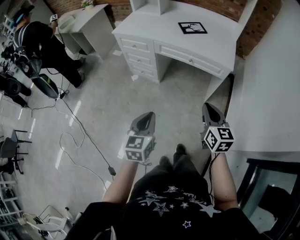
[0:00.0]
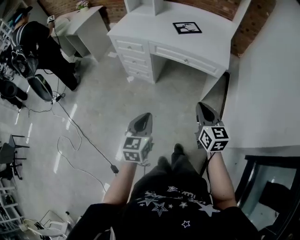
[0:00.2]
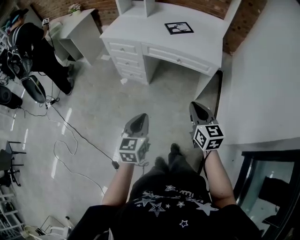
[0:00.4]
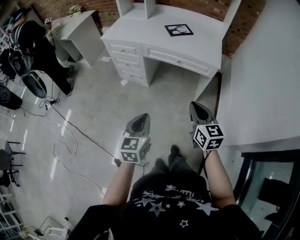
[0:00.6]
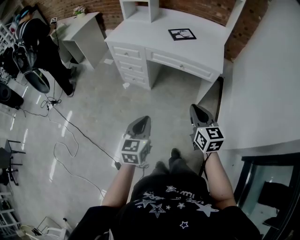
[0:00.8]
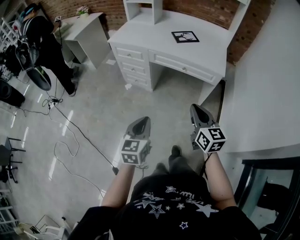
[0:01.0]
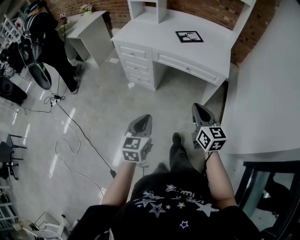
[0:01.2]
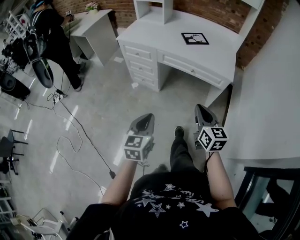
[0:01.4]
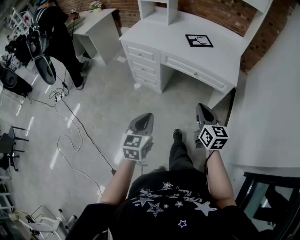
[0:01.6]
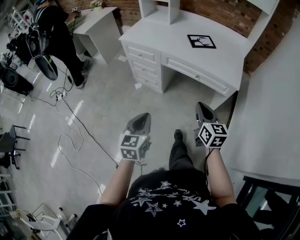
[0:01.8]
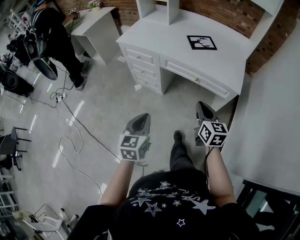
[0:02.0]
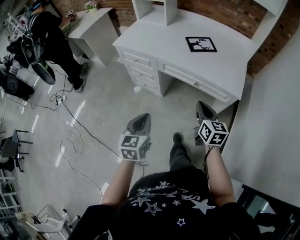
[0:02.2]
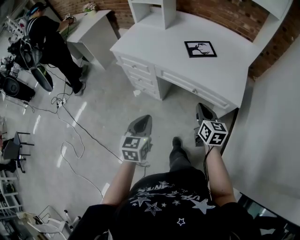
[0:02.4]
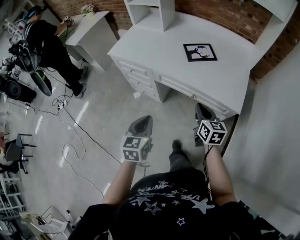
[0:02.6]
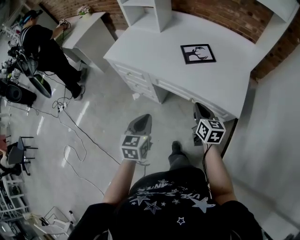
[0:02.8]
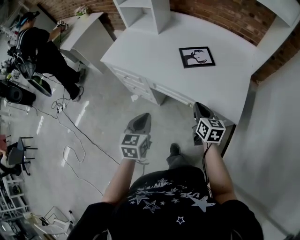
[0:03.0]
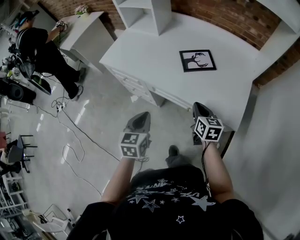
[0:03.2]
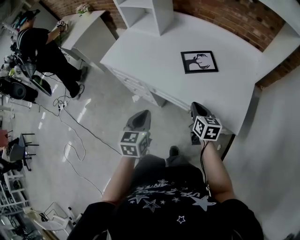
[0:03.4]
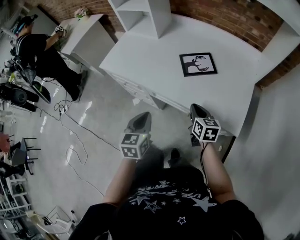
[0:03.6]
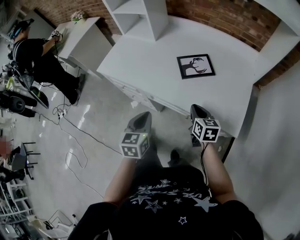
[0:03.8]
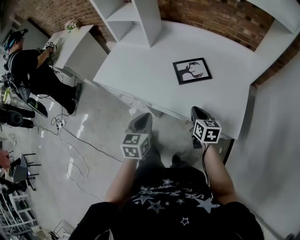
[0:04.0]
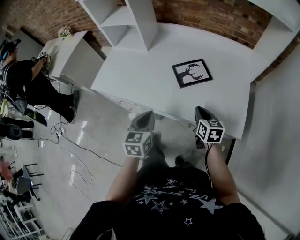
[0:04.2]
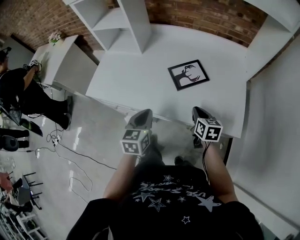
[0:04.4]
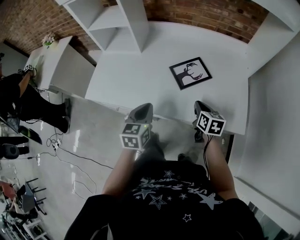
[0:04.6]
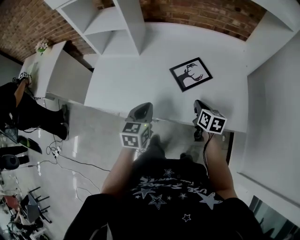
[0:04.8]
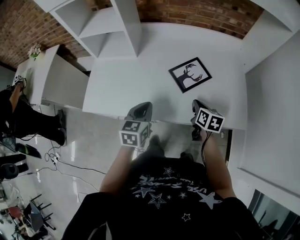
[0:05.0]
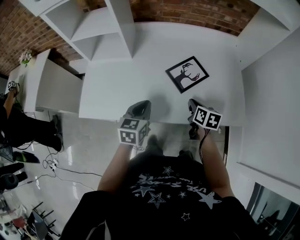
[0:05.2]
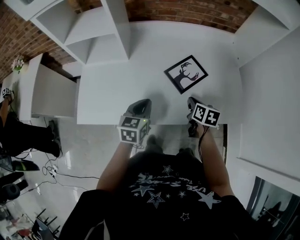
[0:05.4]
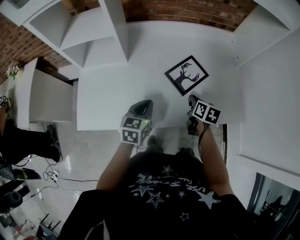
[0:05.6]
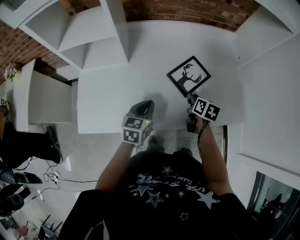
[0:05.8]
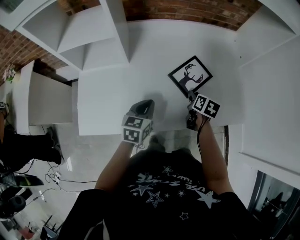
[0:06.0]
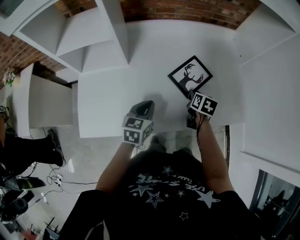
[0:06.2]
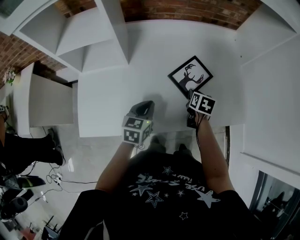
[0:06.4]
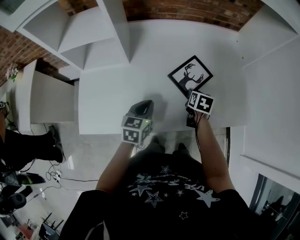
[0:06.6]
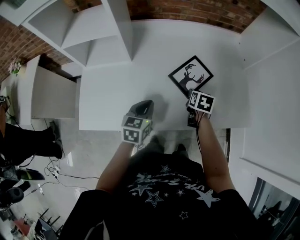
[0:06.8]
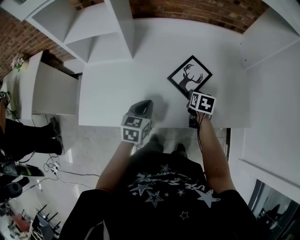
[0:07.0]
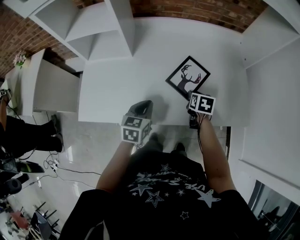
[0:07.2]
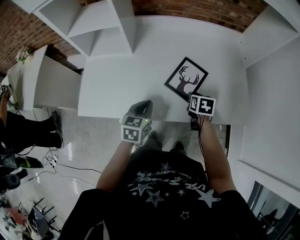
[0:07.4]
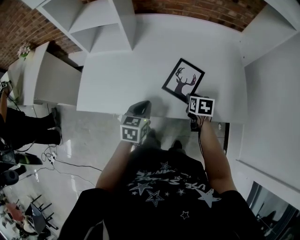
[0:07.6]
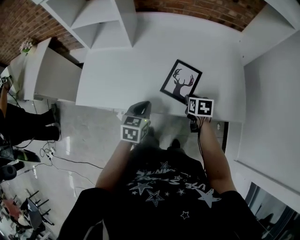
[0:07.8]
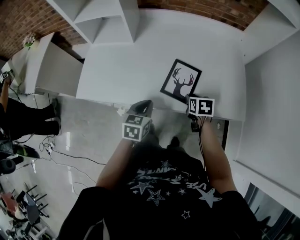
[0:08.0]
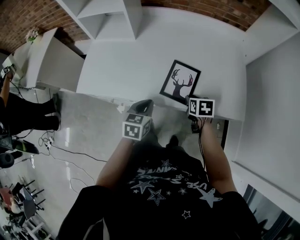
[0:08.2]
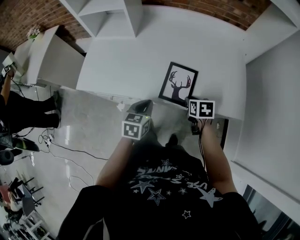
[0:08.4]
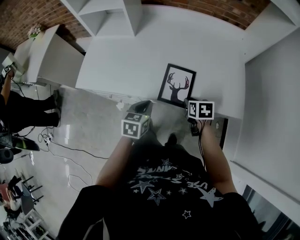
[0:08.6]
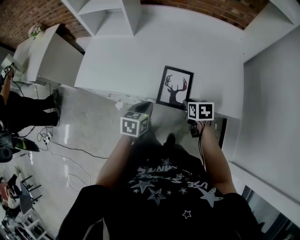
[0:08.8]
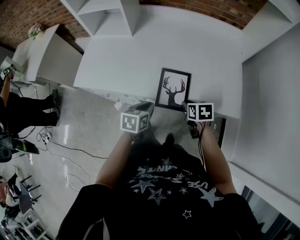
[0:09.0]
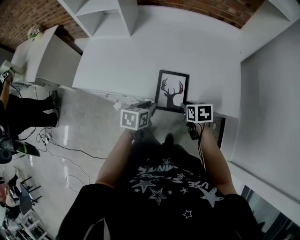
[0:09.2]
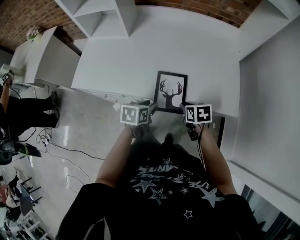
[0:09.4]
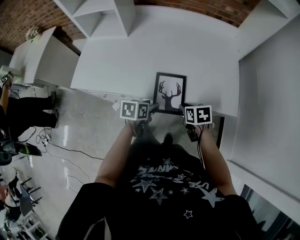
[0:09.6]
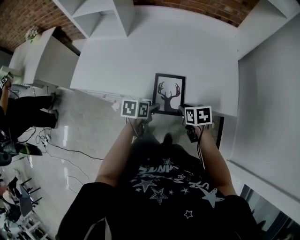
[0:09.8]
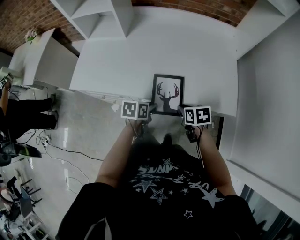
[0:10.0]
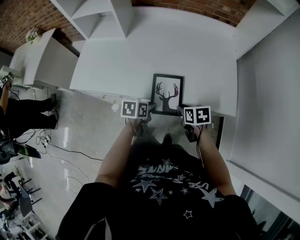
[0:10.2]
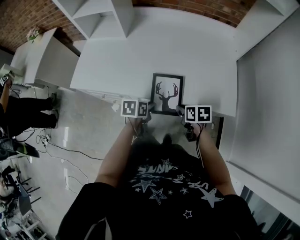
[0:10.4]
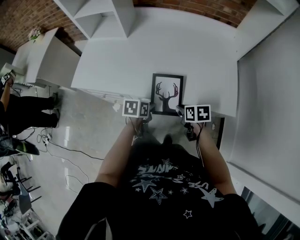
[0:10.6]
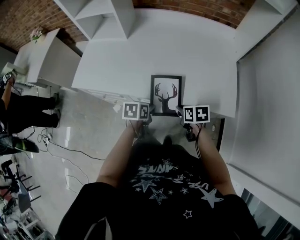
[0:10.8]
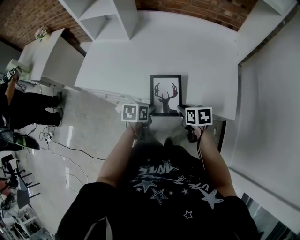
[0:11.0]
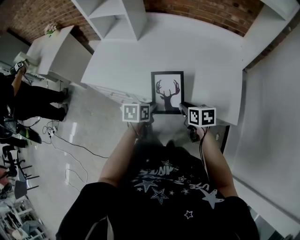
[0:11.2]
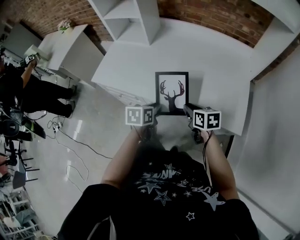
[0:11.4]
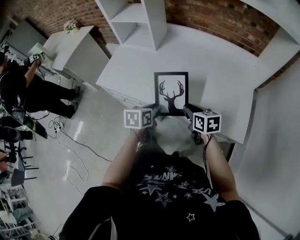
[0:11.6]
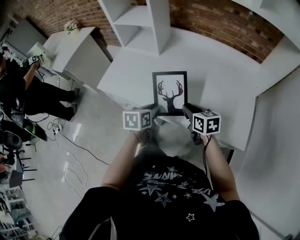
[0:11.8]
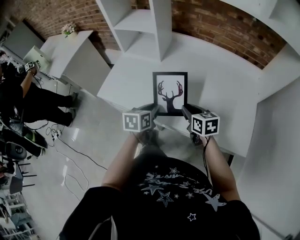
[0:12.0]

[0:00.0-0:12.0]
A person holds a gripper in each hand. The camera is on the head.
0:00.0 to 0:01.6: The left gripper changes place by roughly 5 cm. The right gripper shifts about 10 cm forward and to the left.
0:01.6 to 0:03.0: The grippers both shift forward by roughly 30 cm.
0:03.0 to 0:04.4: The right gripper heads forward, covering approximately 10 cm; the left gripper travels forward by approximately 20 cm.
0:04.4 to 0:06.0: The left gripper moves approximately 15 cm, and changes its angle by about 30 degrees. The right gripper changes place by approximately 15 cm, changes its angle by approximately 40 degrees, and opens.
0:06.0 to 0:07.6: The grippers both shift backward by roughly 5 cm. The right gripper turns by roughly 30 degrees.
0:07.6 to 0:09.0: The left gripper heads backward and to the right, covering approximately 10 cm. Meanwhile the right gripper moves backward, about 10 cm.
0:09.0 to 0:10.4: The left gripper opens, then closes again.
0:10.4 to 0:12.0: The right gripper travels forward, upward and to the left by roughly 20 cm, and changes its angle by about 30 degrees; the left gripper goes approximately 20 cm to the left, upward and forward, and changes its angle by about 30 degrees.

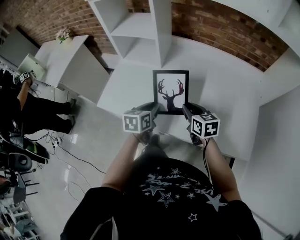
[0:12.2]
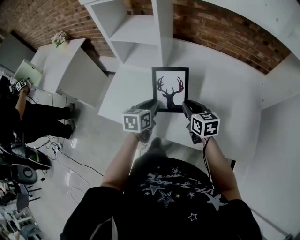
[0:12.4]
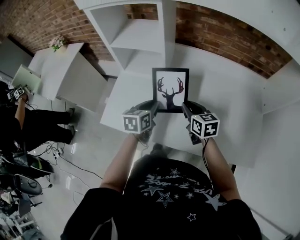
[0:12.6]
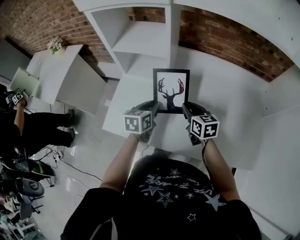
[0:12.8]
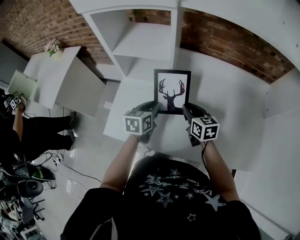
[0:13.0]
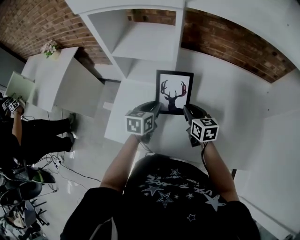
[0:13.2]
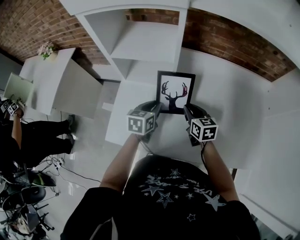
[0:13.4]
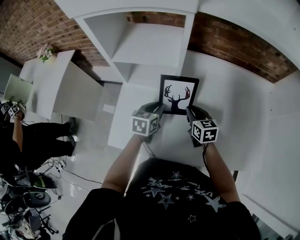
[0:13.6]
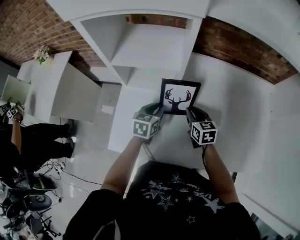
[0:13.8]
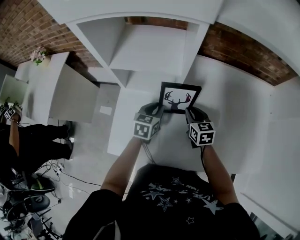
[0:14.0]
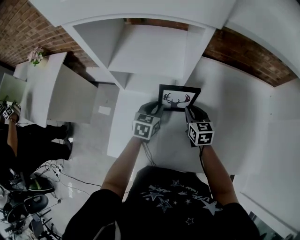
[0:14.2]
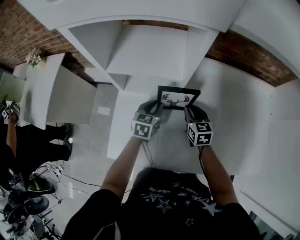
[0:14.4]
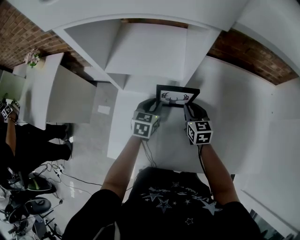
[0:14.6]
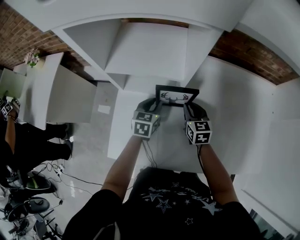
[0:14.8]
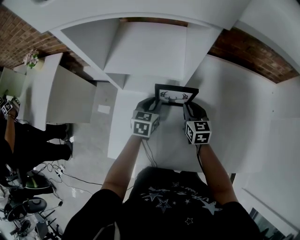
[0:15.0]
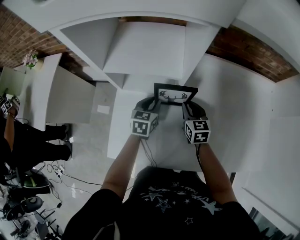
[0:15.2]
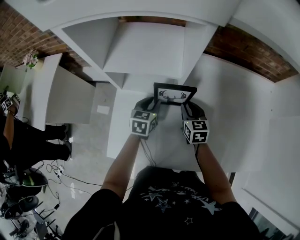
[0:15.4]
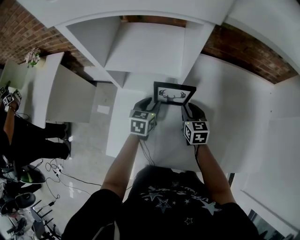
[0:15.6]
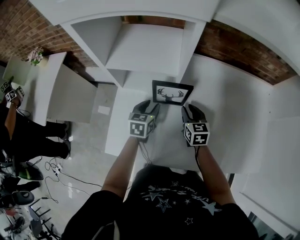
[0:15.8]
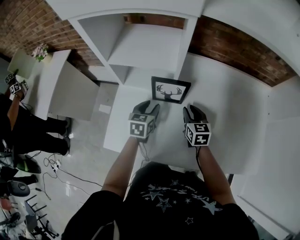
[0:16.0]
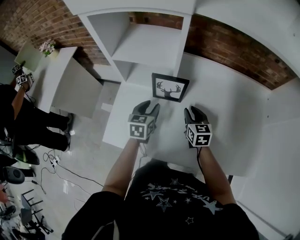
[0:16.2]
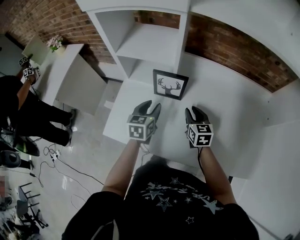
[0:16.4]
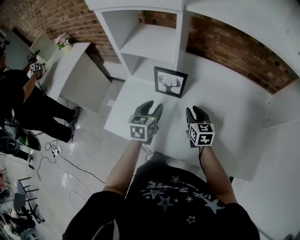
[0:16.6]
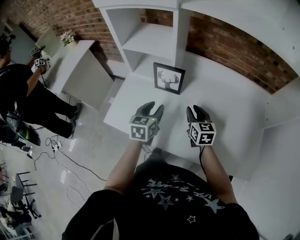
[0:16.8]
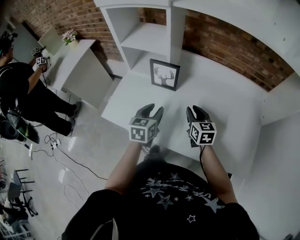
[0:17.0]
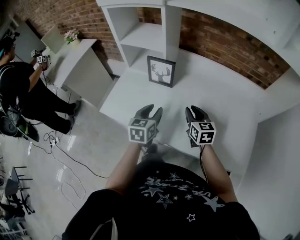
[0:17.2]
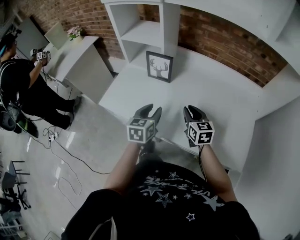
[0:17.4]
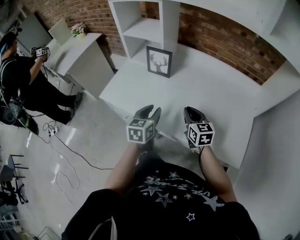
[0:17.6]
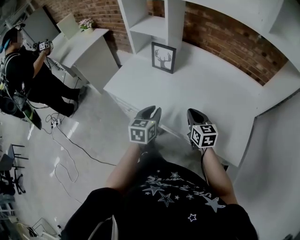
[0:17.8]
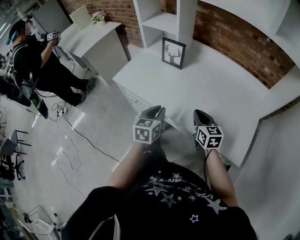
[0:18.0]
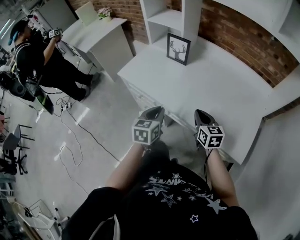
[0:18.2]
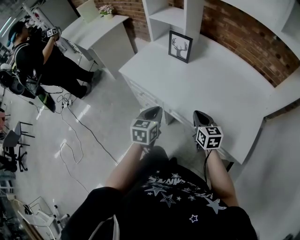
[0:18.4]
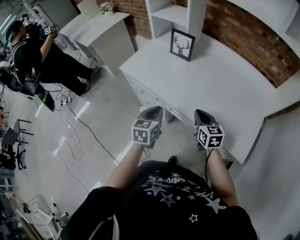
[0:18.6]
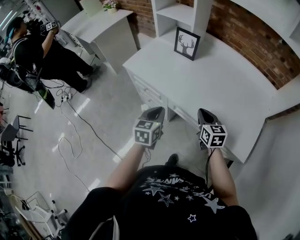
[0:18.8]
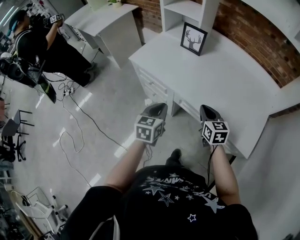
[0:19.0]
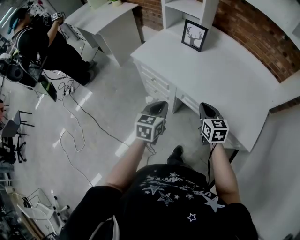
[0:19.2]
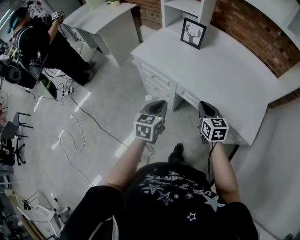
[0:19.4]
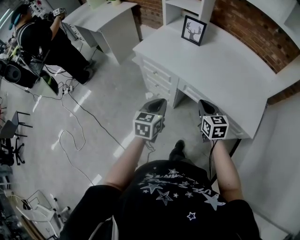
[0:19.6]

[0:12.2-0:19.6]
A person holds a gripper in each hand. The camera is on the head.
0:12.2 to 0:13.6: Both grippers move forward and to the left, some 20 cm.
0:13.6 to 0:15.2: Both grippers travel together forward, approximately 5 cm.
0:15.2 to 0:16.6: The left gripper goes about 15 cm backward and upward; the right gripper shifts approximately 10 cm backward and to the right.
0:16.6 to 0:18.2: The grippers both shift backward by roughly 25 cm. The right gripper closes, while the left gripper closes.
0:18.2 to 0:19.6: Both grippers move backward and to the left, about 15 cm.

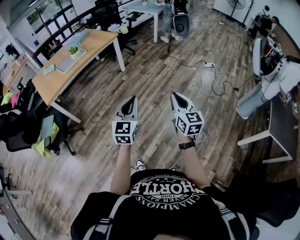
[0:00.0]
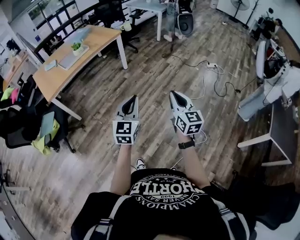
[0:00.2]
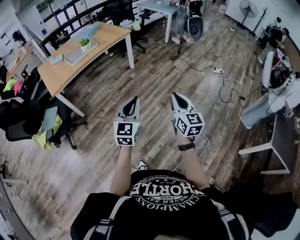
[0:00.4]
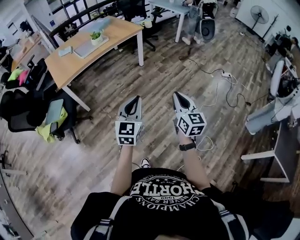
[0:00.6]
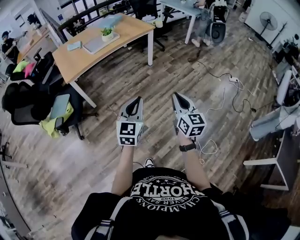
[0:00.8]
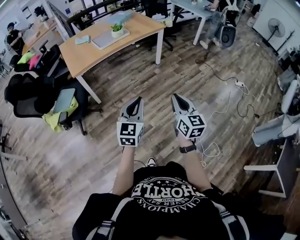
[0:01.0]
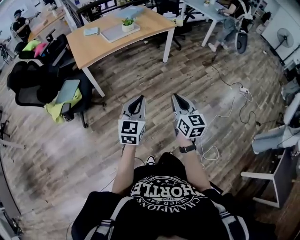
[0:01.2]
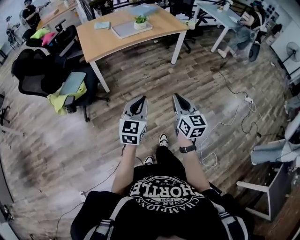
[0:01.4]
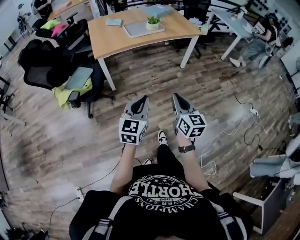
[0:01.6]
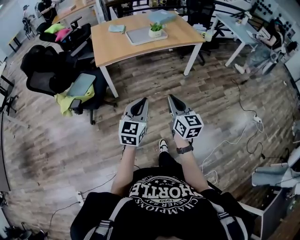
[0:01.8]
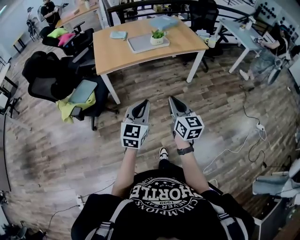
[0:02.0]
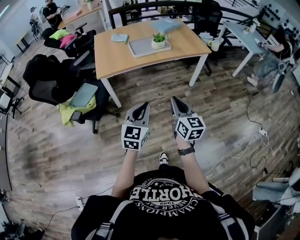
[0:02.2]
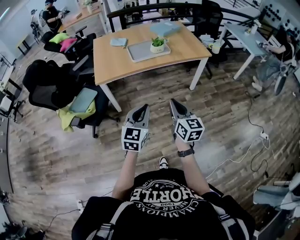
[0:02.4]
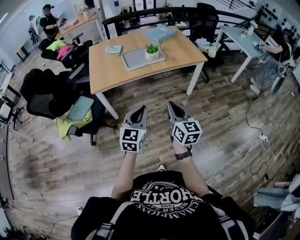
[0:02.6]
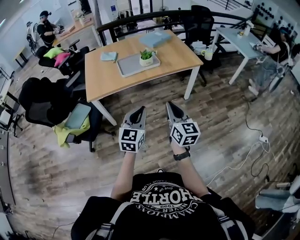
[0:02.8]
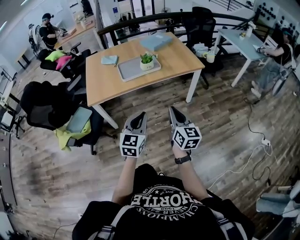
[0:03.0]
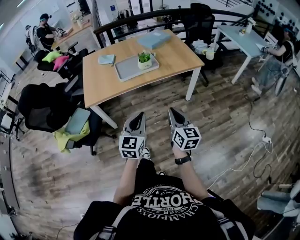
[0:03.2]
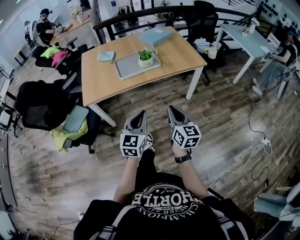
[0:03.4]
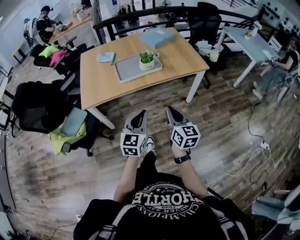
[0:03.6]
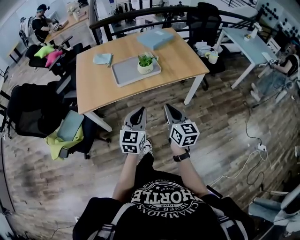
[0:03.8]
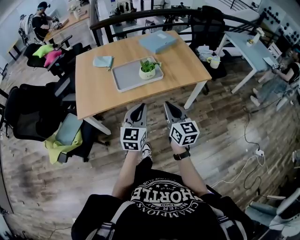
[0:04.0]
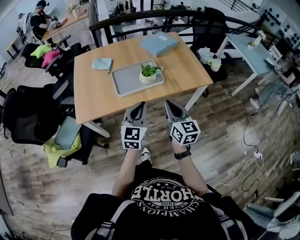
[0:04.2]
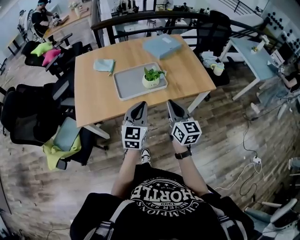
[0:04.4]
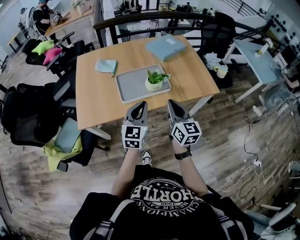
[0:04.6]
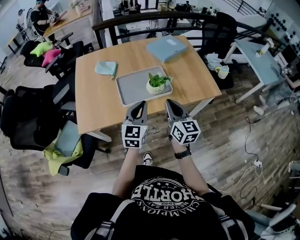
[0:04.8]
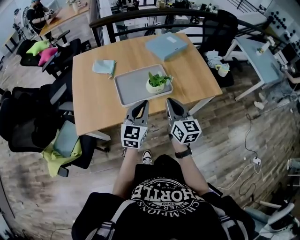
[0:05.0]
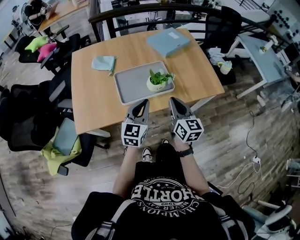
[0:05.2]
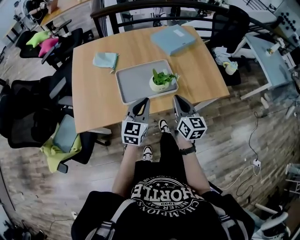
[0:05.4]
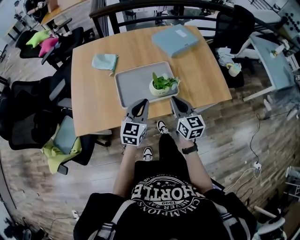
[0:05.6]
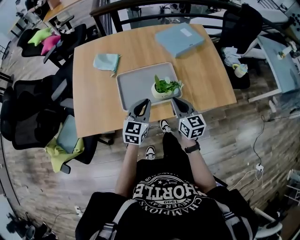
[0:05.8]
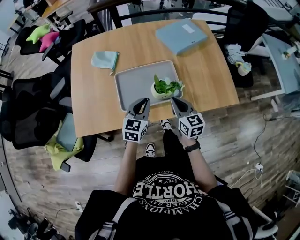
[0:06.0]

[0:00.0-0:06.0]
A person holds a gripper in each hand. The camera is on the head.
0:00.0 to 0:01.6: The left gripper shifts by roughly 35 cm, and turns by some 30 degrees. Meanwhile the right gripper shifts by approximately 40 cm, and turns by about 30 degrees.
0:01.6 to 0:03.0: Both grippers travel together forward and to the right, roughly 35 cm.
0:03.0 to 0:04.4: Both grippers move forward, roughly 35 cm.
0:04.4 to 0:06.0: The two grippers go roughly 30 cm forward and downward. The right gripper rotates about 20 degrees.
